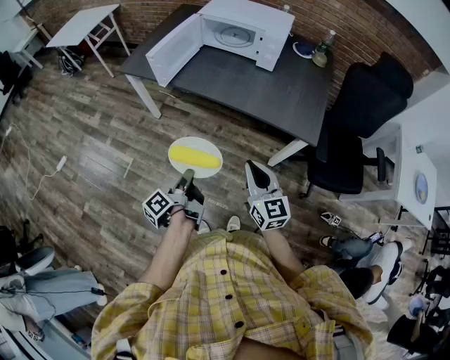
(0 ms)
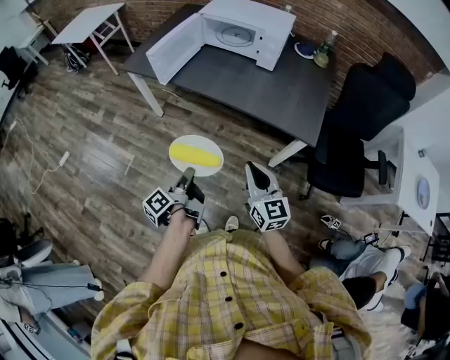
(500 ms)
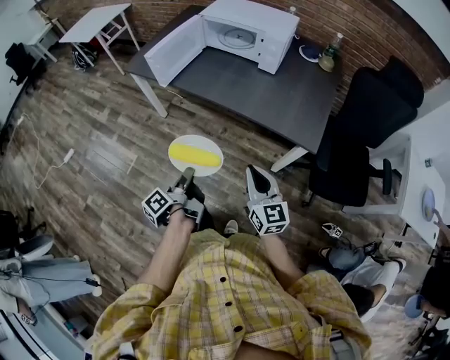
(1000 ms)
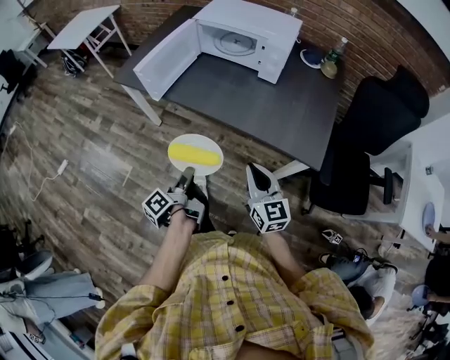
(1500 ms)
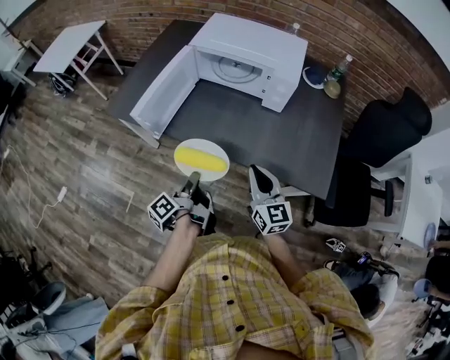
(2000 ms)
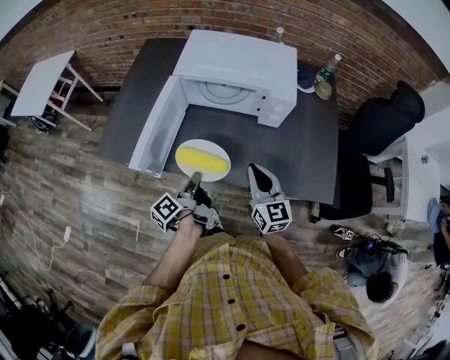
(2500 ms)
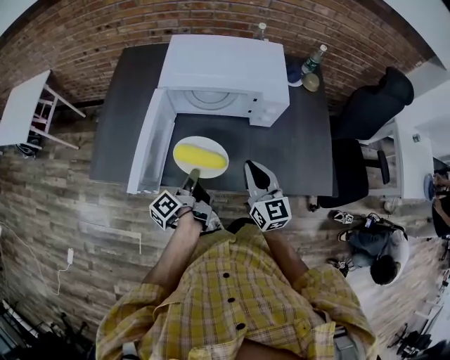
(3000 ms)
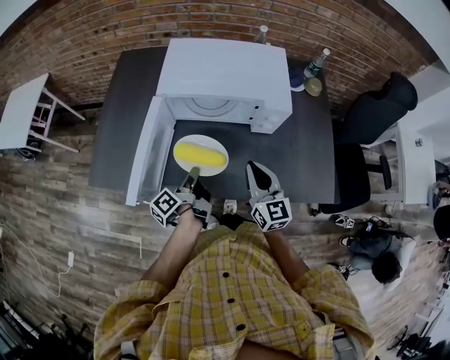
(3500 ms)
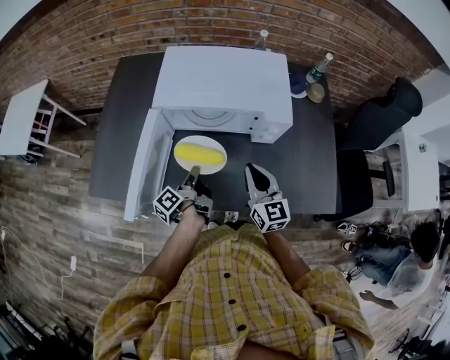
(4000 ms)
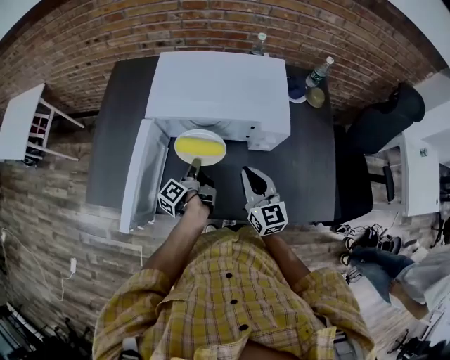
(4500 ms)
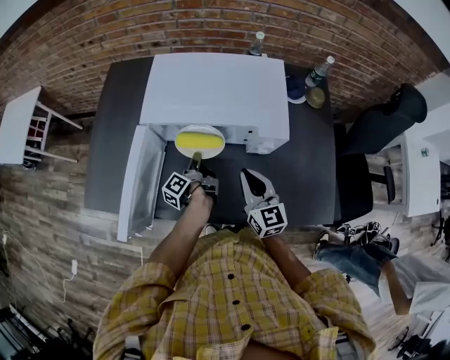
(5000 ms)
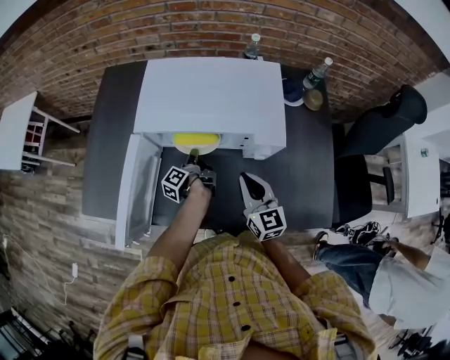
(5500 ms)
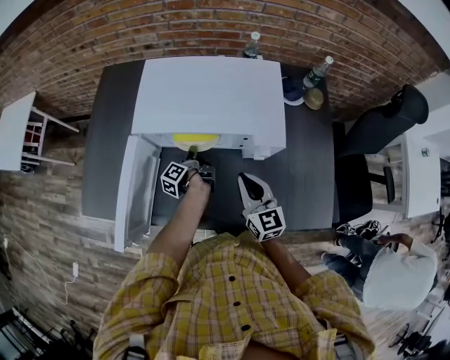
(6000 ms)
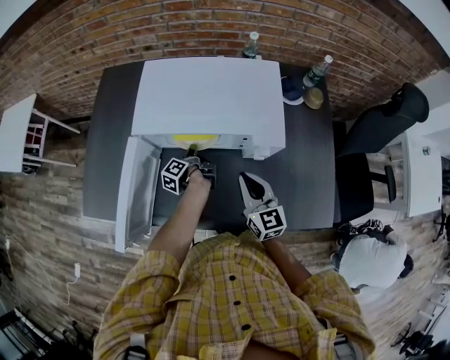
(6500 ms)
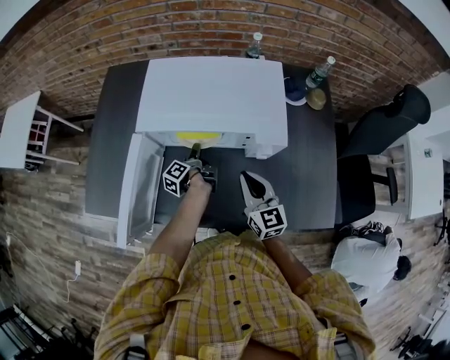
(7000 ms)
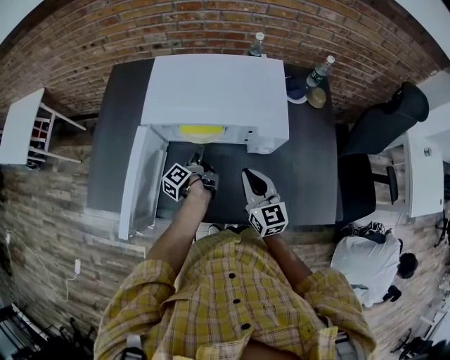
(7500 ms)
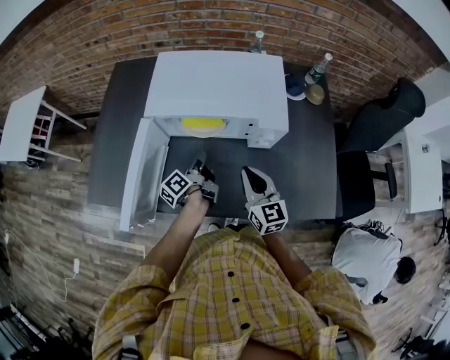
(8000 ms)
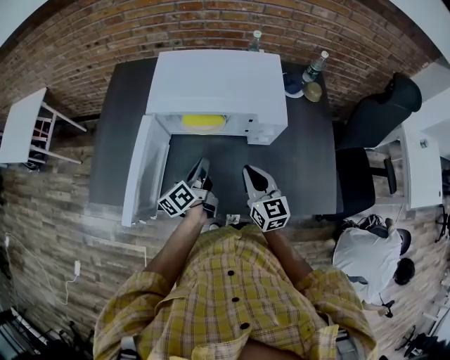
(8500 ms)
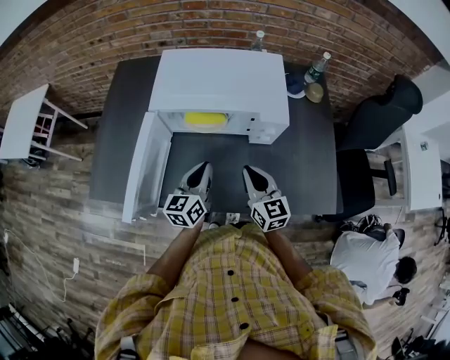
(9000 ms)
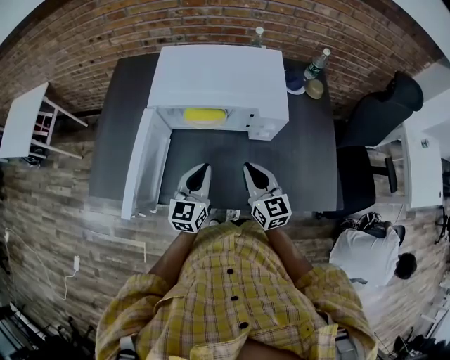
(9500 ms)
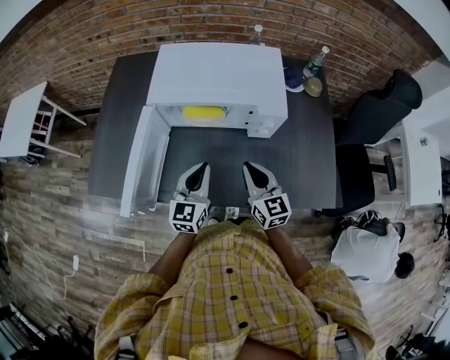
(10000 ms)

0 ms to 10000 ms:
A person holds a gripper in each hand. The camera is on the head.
0 ms to 2000 ms: The right gripper shifts by roughly 25 cm.
2000 ms to 4000 ms: The right gripper moves about 20 cm.
4000 ms to 6000 ms: The right gripper ends up approximately 5 cm from where it was.

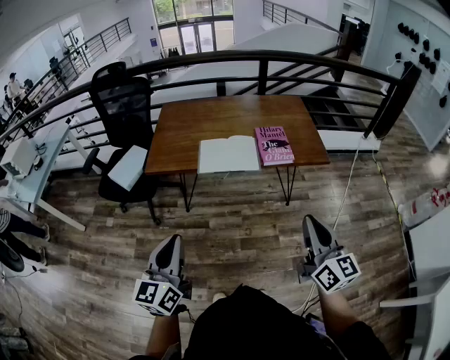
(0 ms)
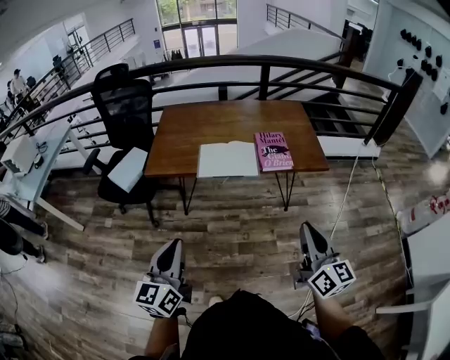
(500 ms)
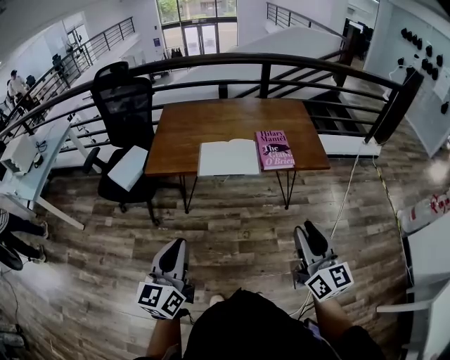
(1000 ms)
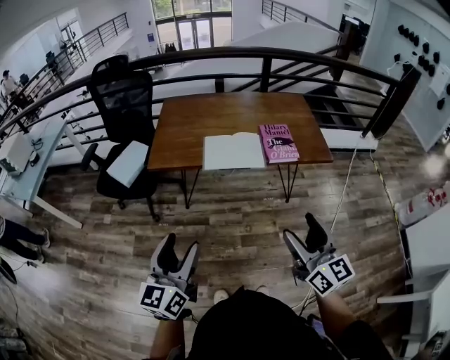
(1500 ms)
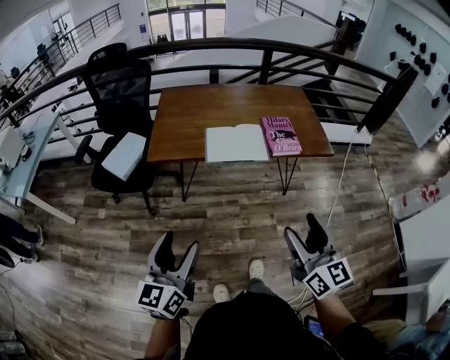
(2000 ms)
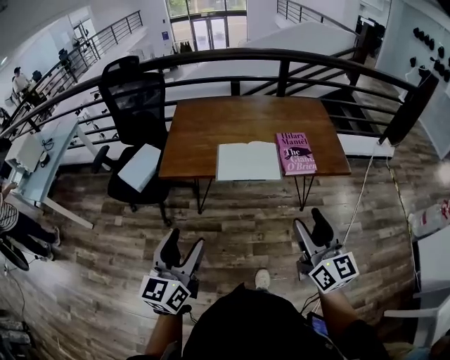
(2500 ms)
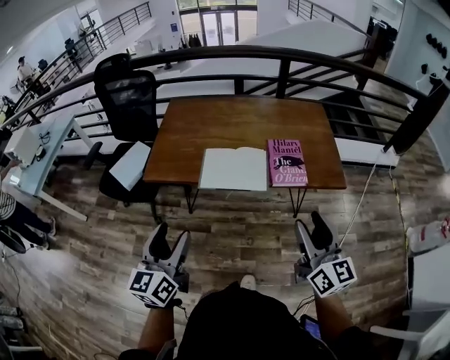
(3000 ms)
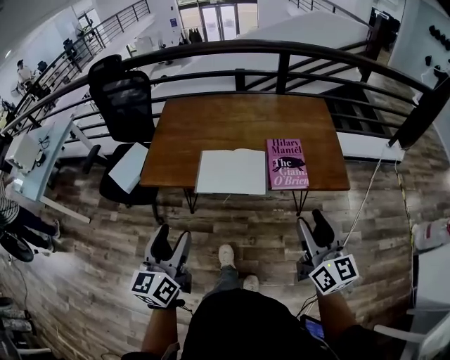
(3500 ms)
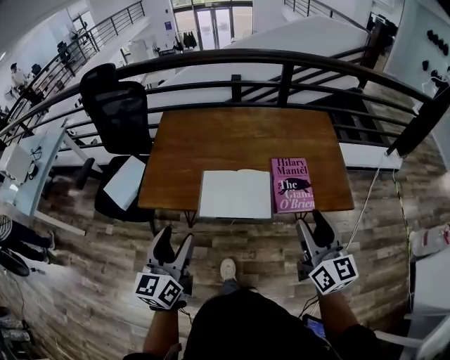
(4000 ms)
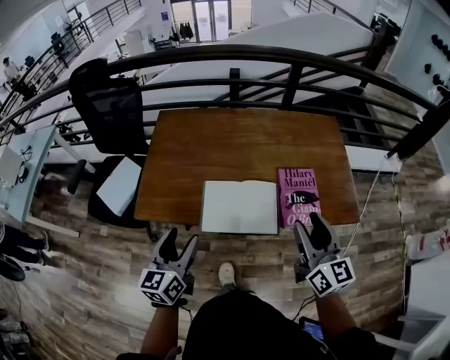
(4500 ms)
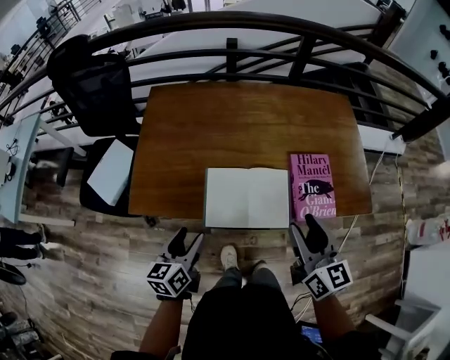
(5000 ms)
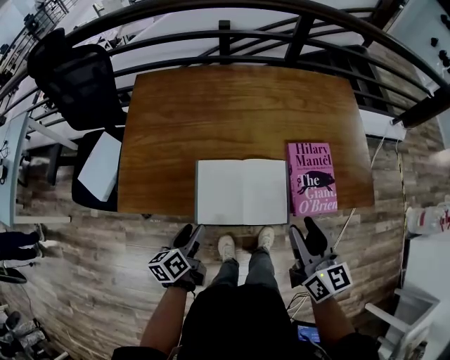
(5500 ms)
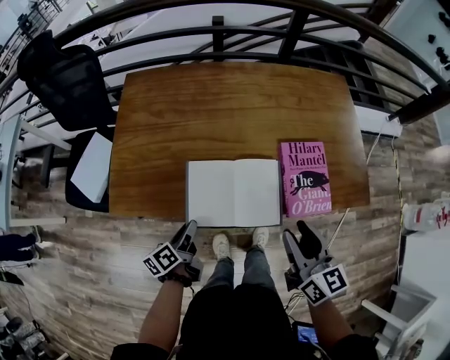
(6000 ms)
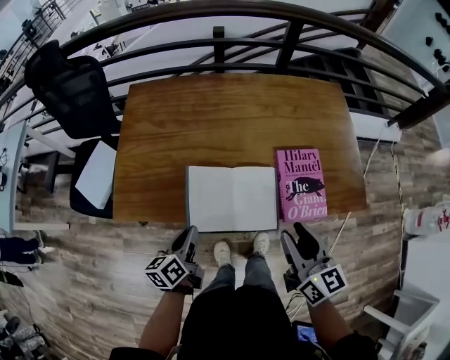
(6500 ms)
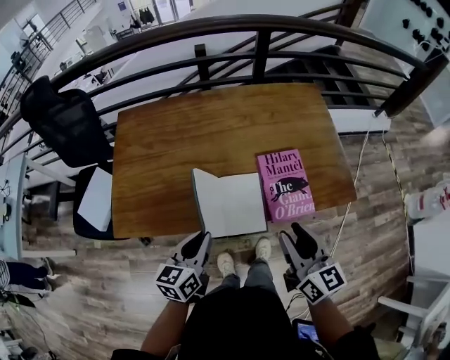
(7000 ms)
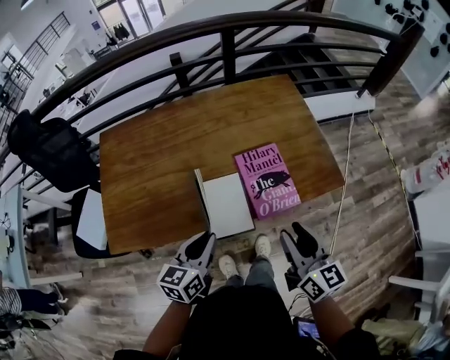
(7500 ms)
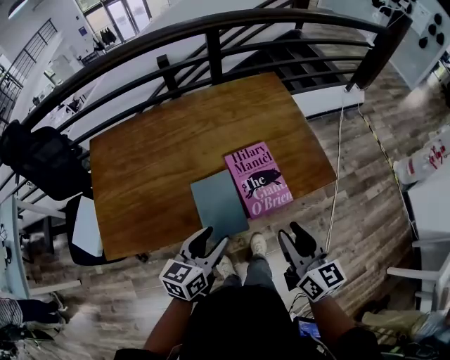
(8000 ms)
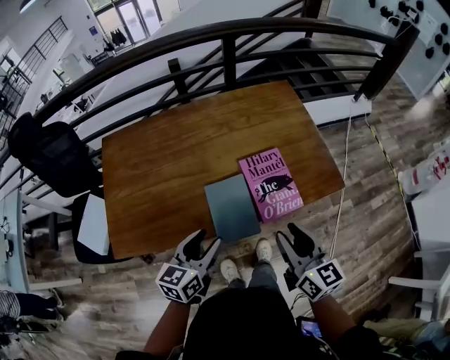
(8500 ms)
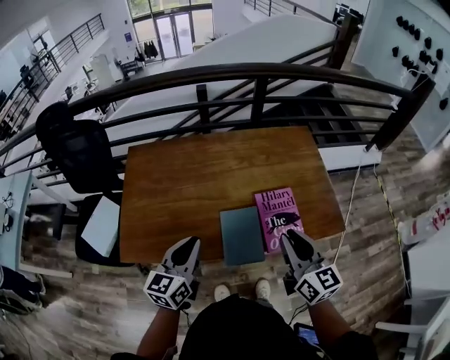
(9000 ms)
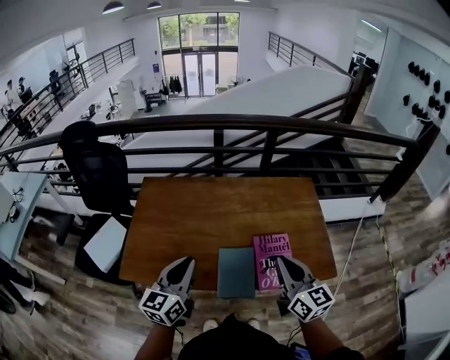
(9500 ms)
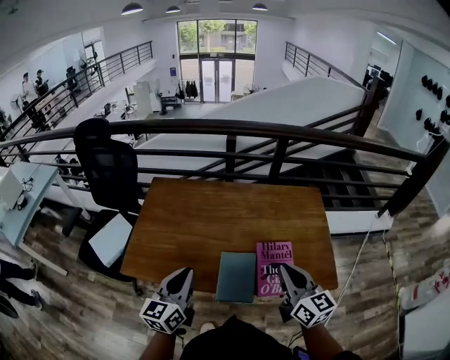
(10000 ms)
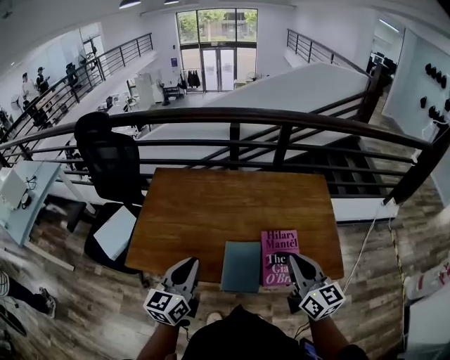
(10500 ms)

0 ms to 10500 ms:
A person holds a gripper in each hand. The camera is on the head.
0 ms to 2000 ms: The left gripper shifts roughly 5 cm to the left, and opens. Meanwhile the right gripper moves to the left, roughly 10 cm, and opens up.
2000 ms to 4000 ms: The left gripper heads forward, covering about 25 cm. Meanwhile the right gripper is displaced forward and to the right by roughly 30 cm.
4000 ms to 6500 ms: The left gripper travels downward and forward by about 25 cm, swivels roughly 40 degrees, and closes; the right gripper shifts roughly 15 cm downward, forward and to the left.
6500 ms to 8500 ms: The left gripper heads to the right and upward, covering about 15 cm, turns by approximately 40 degrees, and opens its fingers; the right gripper travels to the right by some 5 cm.
8500 ms to 10500 ms: The left gripper goes some 15 cm upward and to the left, swivels about 30 degrees, and closes; the right gripper goes approximately 15 cm forward and upward, turns by roughly 20 degrees, and closes its fingers.

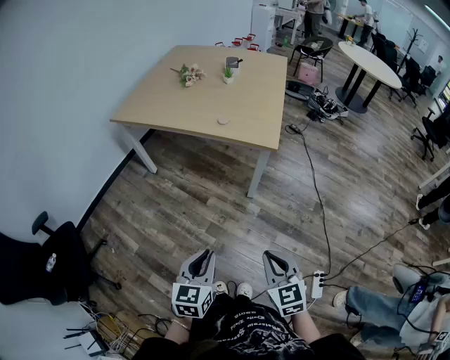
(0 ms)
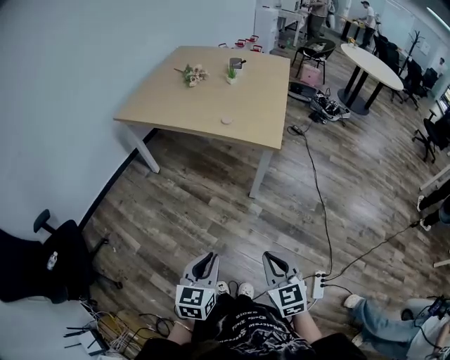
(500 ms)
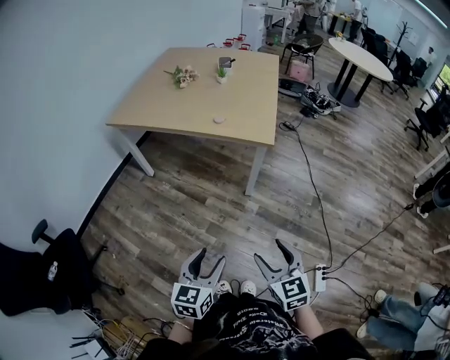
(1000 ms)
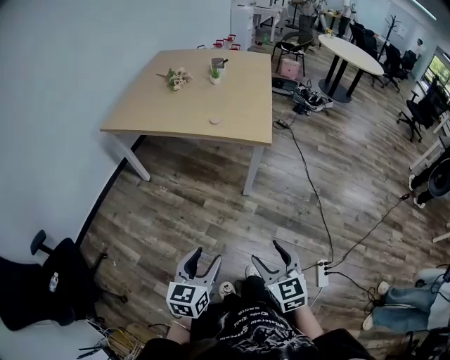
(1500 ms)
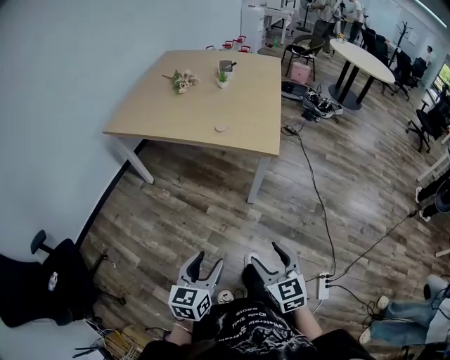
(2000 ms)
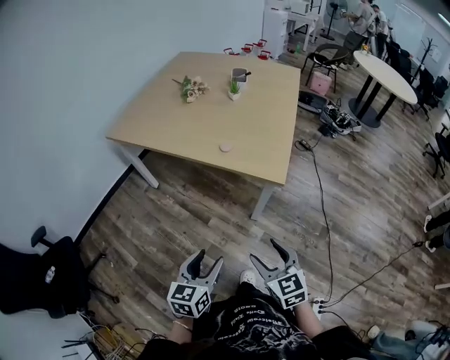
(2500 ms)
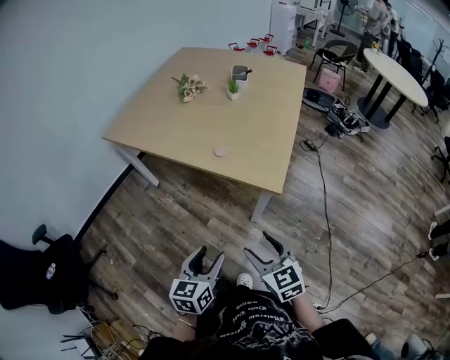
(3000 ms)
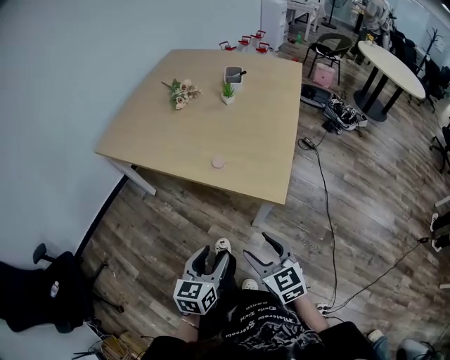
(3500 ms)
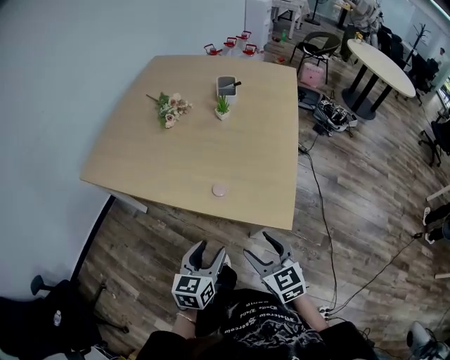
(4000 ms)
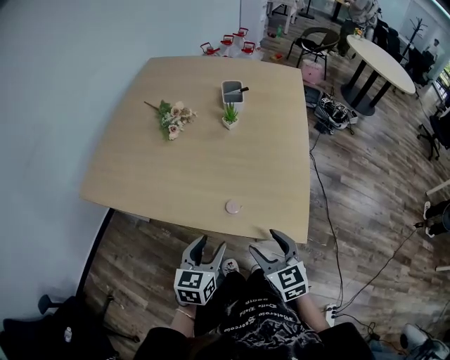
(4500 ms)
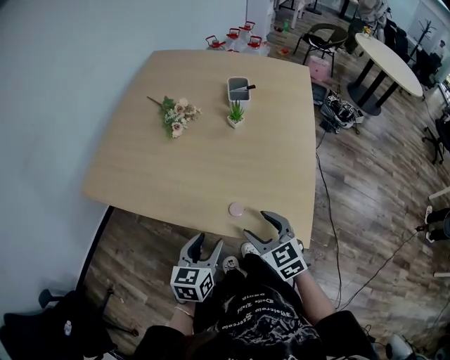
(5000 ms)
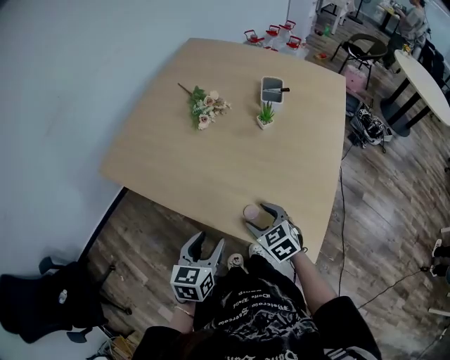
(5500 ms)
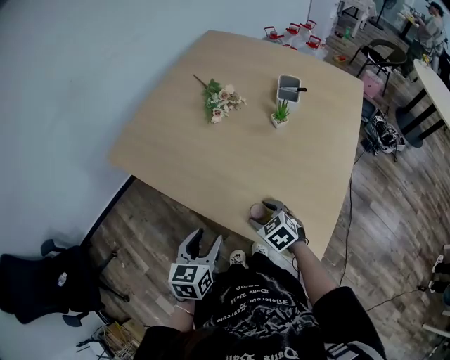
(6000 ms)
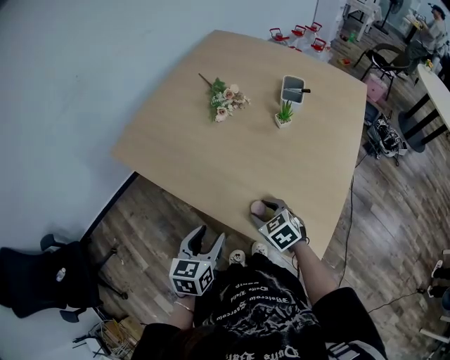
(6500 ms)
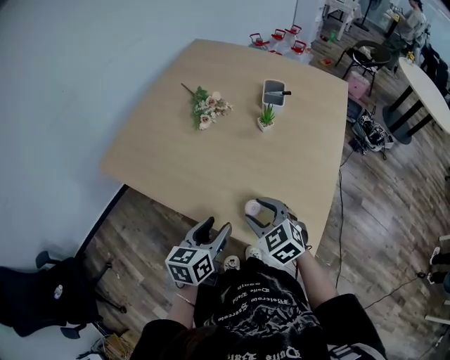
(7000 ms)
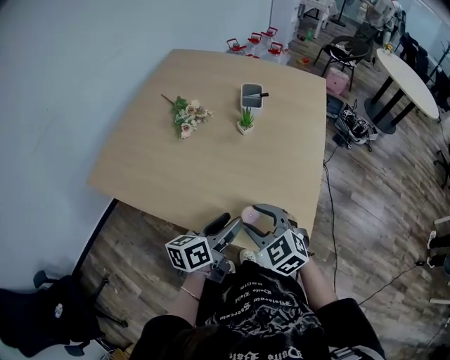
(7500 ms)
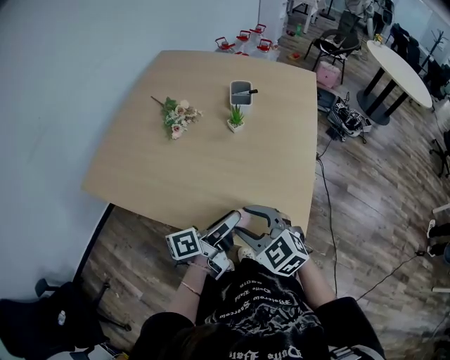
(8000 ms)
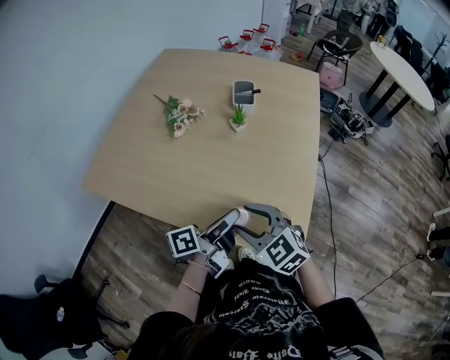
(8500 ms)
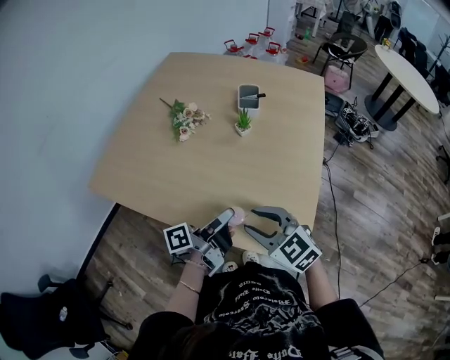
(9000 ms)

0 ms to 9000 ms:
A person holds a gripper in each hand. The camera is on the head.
0 ms to 2000 ms: The right gripper heads forward, covering roughly 5 cm, and opens up. Meanwhile the left gripper ends up approximately 5 cm from where it was, and opens up.
2000 ms to 4500 ms: The two grippers travel together, forward, about 50 cm.
4500 ms to 7000 ms: The left gripper changes place by approximately 10 cm; the right gripper travels downward and back again, some 10 cm each way, and turns by some 30 degrees.
7000 ms to 9000 ms: The right gripper travels upward by about 5 cm, while the left gripper goes approximately 10 cm to the right, twists about 50 degrees counterclockwise, seen from behind, and closes.
